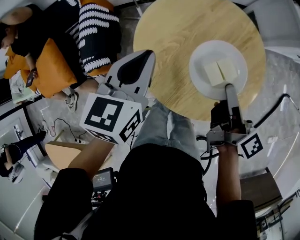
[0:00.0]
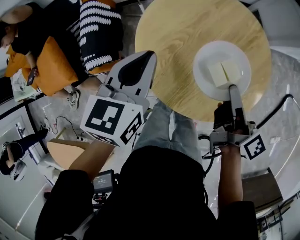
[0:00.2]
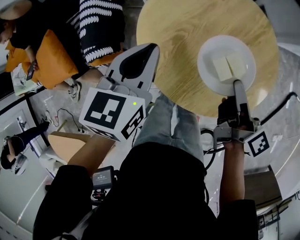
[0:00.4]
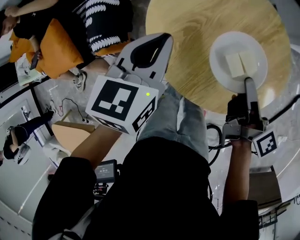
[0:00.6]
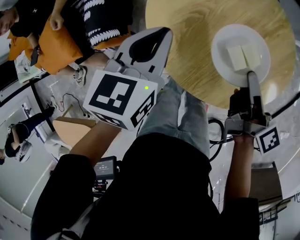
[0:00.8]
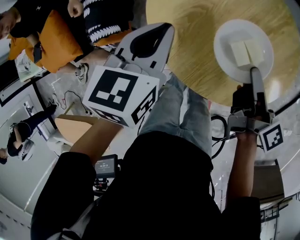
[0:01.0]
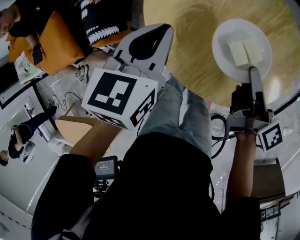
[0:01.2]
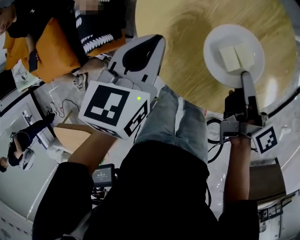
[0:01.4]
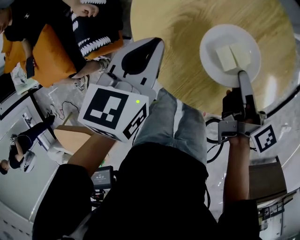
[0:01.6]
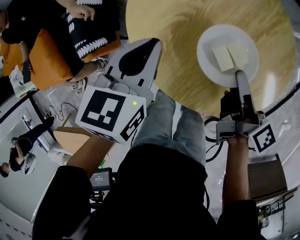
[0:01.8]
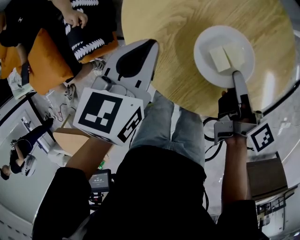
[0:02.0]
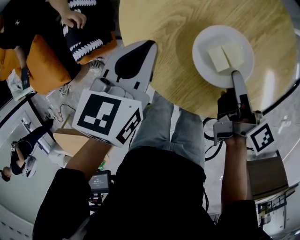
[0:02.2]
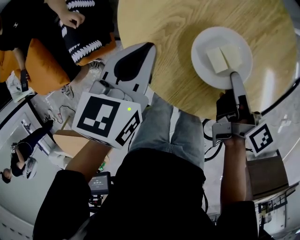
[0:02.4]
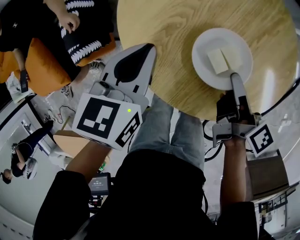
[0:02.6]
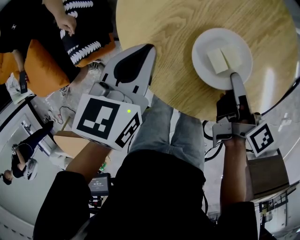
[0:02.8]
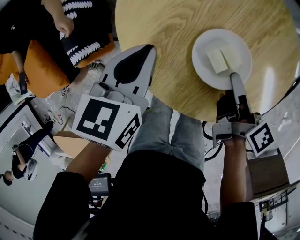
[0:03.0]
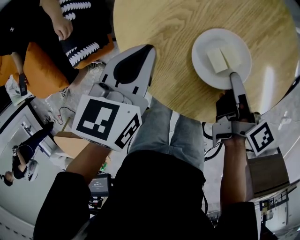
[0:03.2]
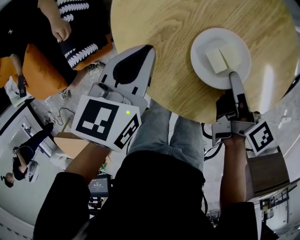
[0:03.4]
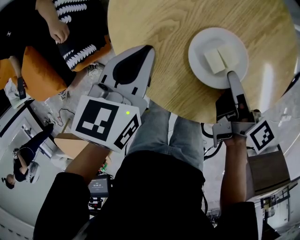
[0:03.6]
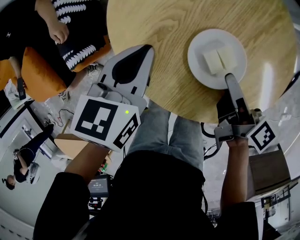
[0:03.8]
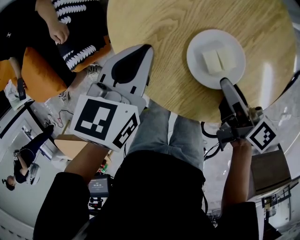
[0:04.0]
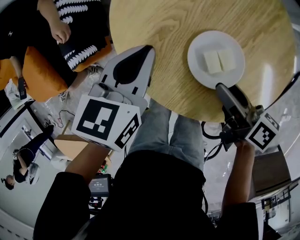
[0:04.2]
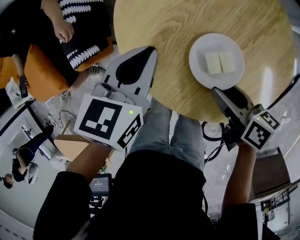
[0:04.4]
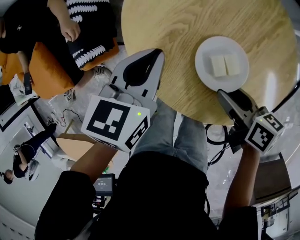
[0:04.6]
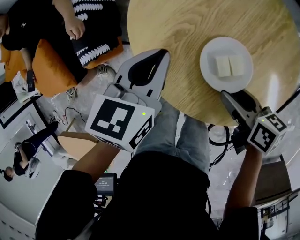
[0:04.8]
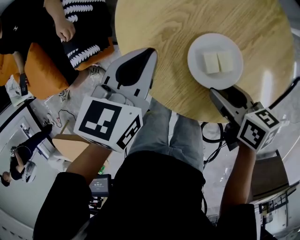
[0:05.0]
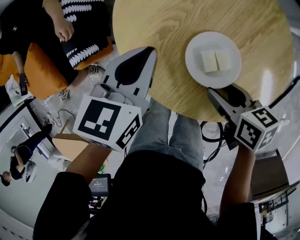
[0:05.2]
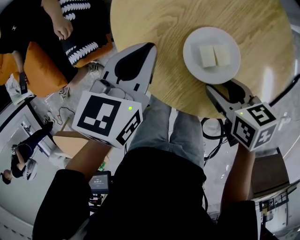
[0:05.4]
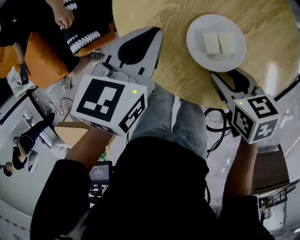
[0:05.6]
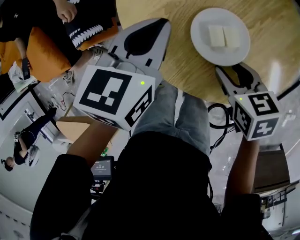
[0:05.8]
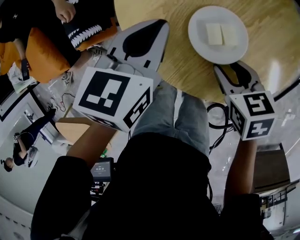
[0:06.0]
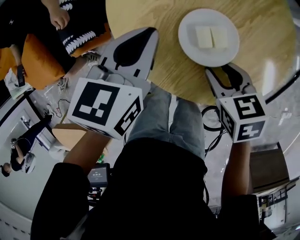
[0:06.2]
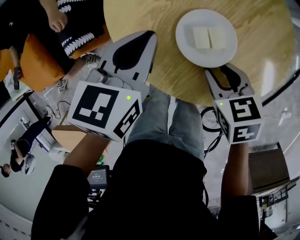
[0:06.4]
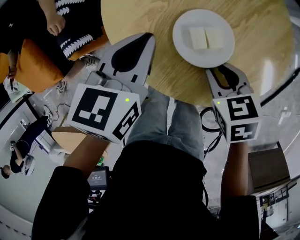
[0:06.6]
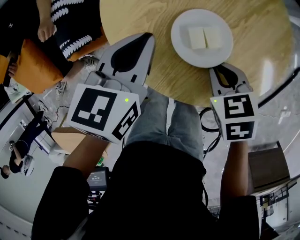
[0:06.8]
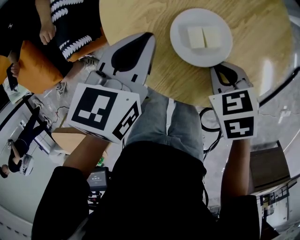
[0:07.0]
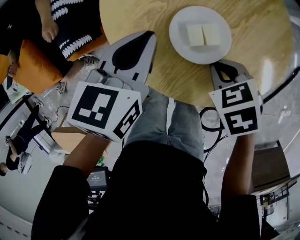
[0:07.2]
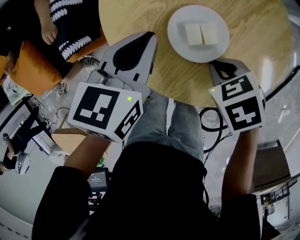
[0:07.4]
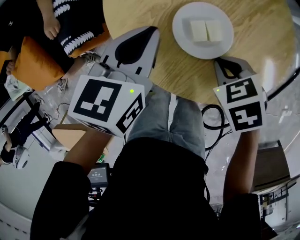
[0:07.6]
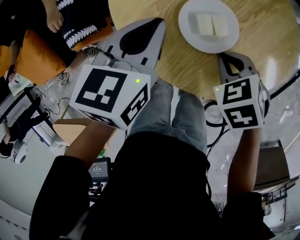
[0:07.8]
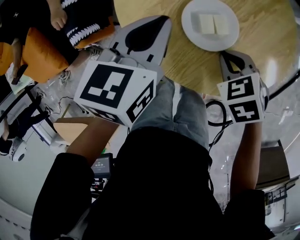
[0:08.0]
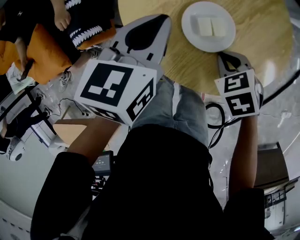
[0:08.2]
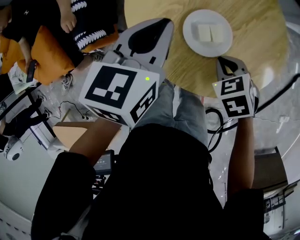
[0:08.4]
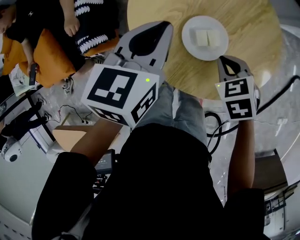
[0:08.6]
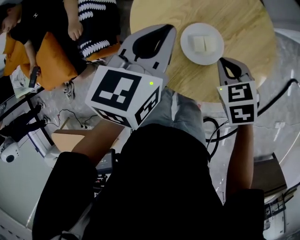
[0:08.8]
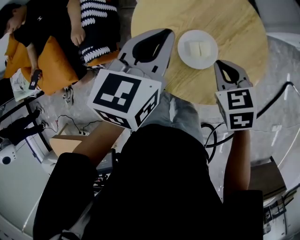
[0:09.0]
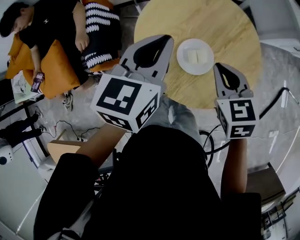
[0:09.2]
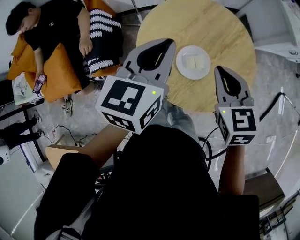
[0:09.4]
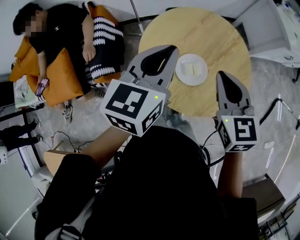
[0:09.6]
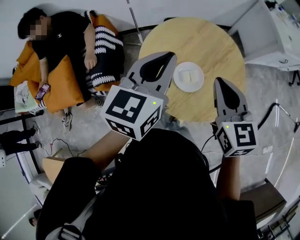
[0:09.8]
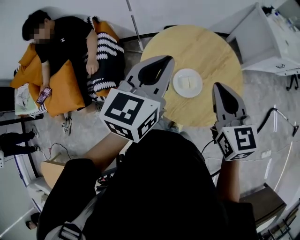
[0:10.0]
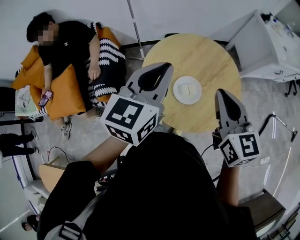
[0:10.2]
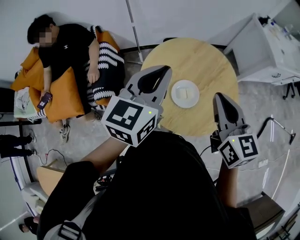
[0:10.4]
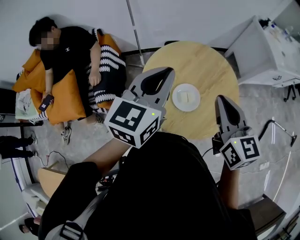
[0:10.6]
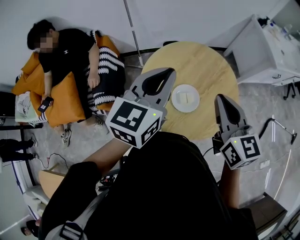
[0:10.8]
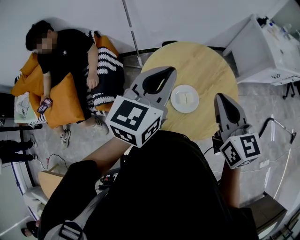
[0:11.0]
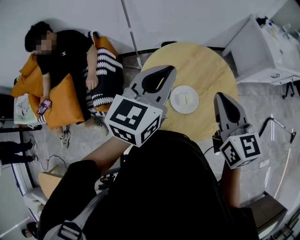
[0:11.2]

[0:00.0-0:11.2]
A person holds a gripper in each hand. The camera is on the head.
0:00.0 to 0:01.6: Both grippers move downward, roughly 10 cm.
0:01.6 to 0:03.2: The grippers stay close to where they were, moving slightly.
0:03.2 to 0:04.8: The right gripper moves roughly 5 cm, turns by approximately 50 degrees, and opens.
0:04.8 to 0:06.4: The right gripper swivels roughly 40 degrees.
0:06.4 to 0:08.0: The right gripper turns by some 20 degrees, and closes up.
0:08.0 to 0:09.6: The two grippers go some 25 cm upward. The right gripper tips its fingers upward by about 40 degrees. The left gripper swivels roughly 20 degrees.
0:09.6 to 0:11.2: Both grippers travel together upward, about 5 cm.

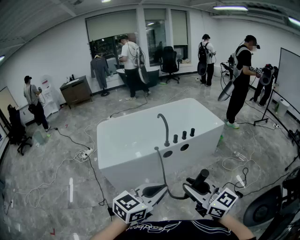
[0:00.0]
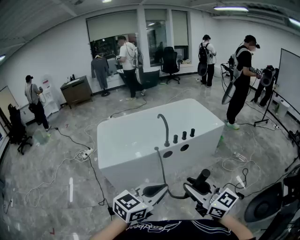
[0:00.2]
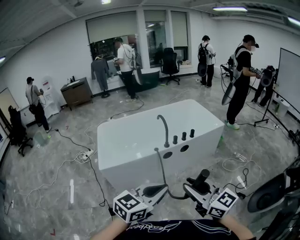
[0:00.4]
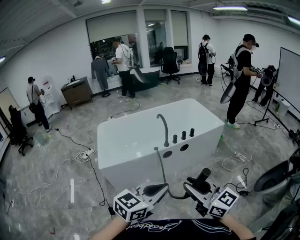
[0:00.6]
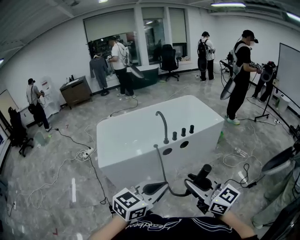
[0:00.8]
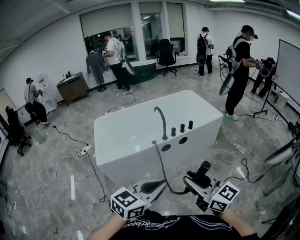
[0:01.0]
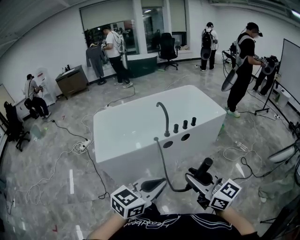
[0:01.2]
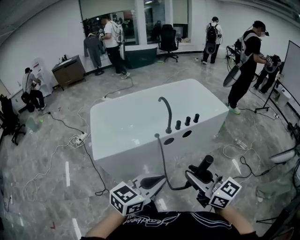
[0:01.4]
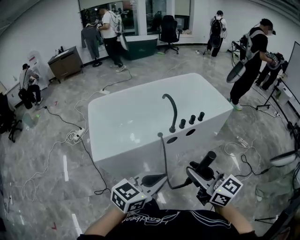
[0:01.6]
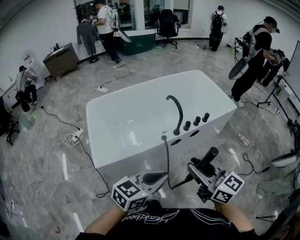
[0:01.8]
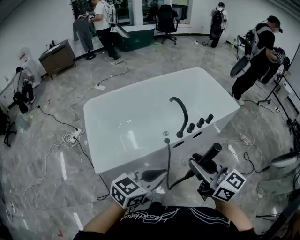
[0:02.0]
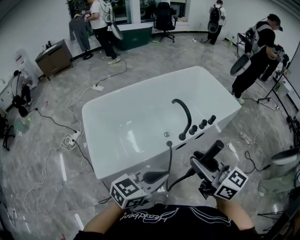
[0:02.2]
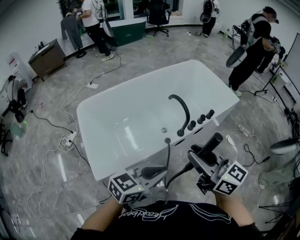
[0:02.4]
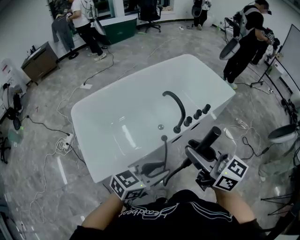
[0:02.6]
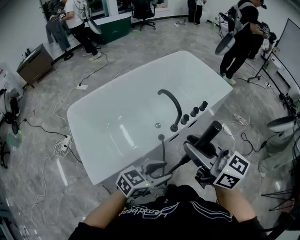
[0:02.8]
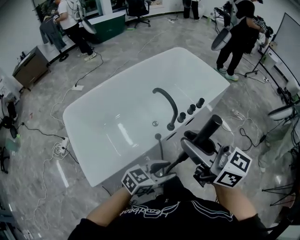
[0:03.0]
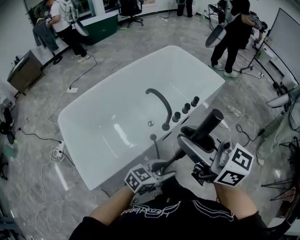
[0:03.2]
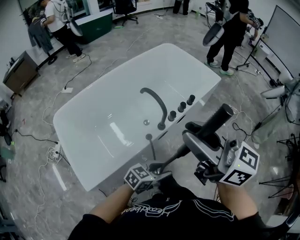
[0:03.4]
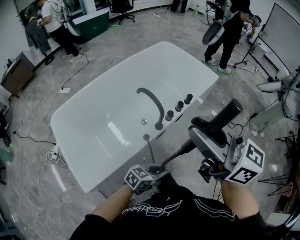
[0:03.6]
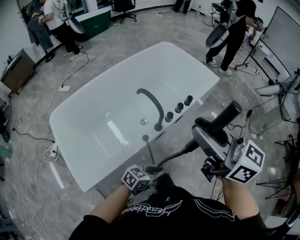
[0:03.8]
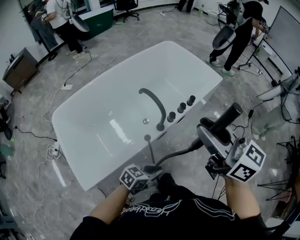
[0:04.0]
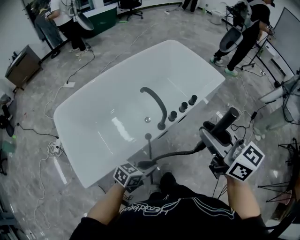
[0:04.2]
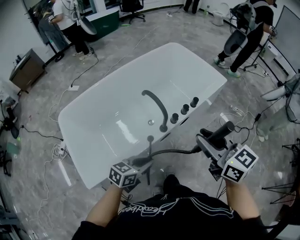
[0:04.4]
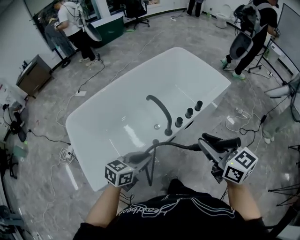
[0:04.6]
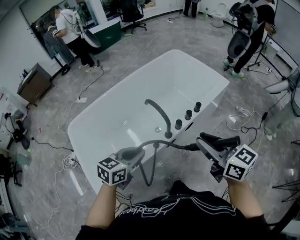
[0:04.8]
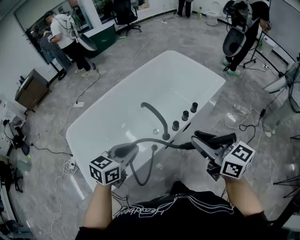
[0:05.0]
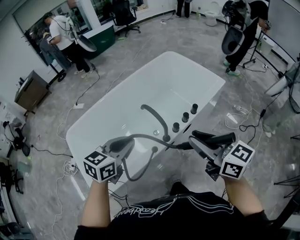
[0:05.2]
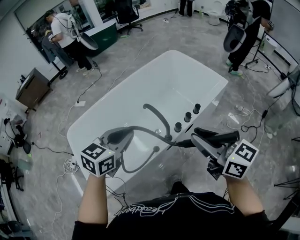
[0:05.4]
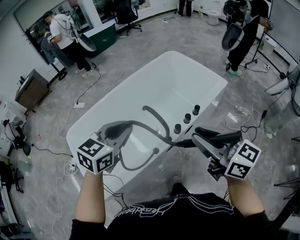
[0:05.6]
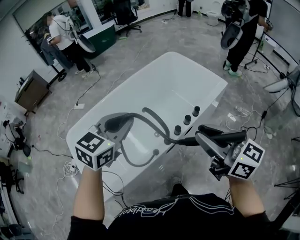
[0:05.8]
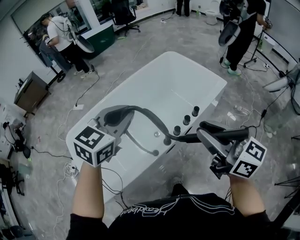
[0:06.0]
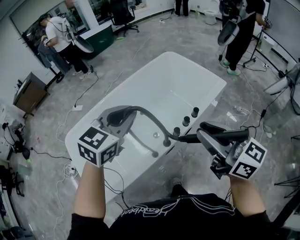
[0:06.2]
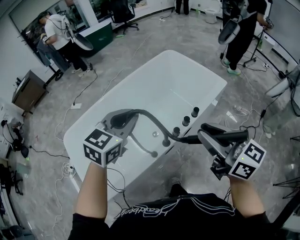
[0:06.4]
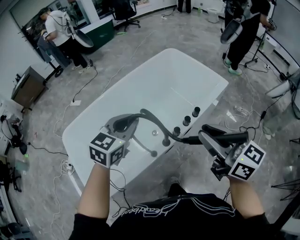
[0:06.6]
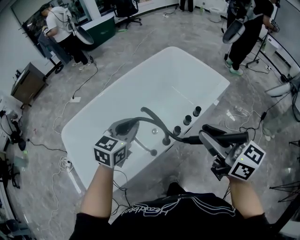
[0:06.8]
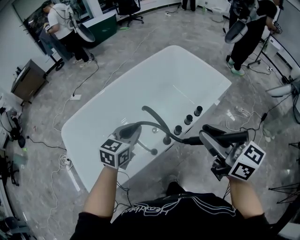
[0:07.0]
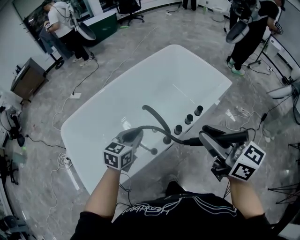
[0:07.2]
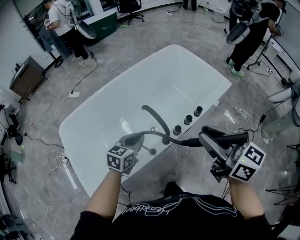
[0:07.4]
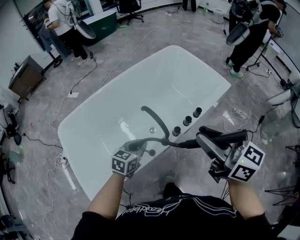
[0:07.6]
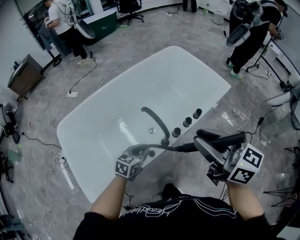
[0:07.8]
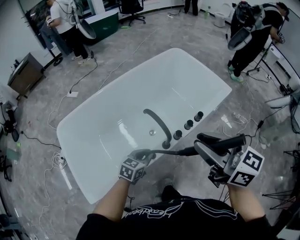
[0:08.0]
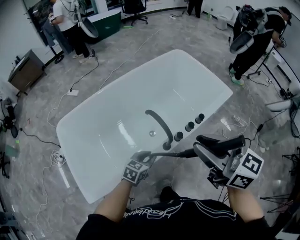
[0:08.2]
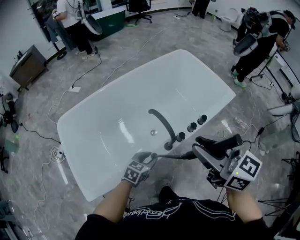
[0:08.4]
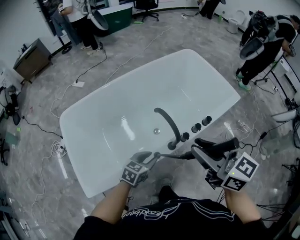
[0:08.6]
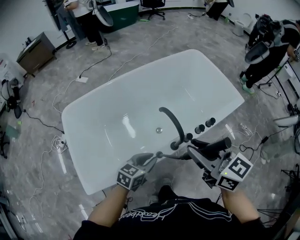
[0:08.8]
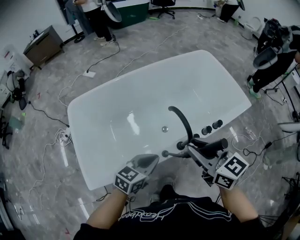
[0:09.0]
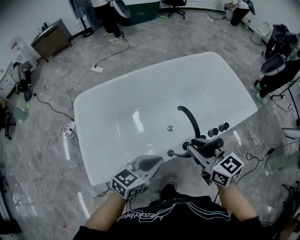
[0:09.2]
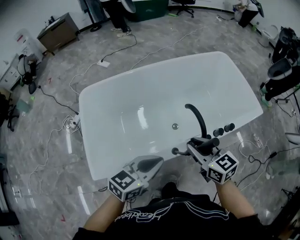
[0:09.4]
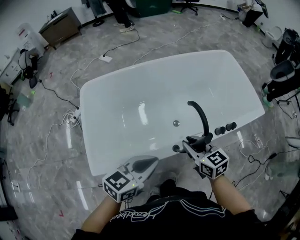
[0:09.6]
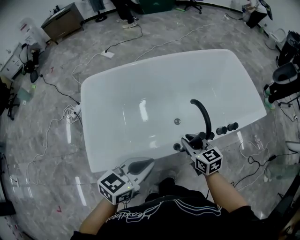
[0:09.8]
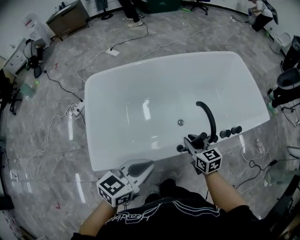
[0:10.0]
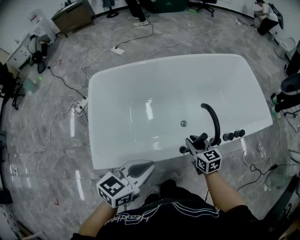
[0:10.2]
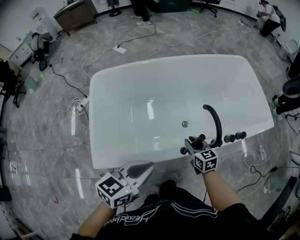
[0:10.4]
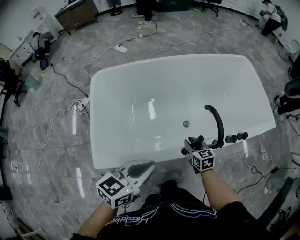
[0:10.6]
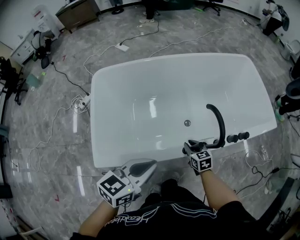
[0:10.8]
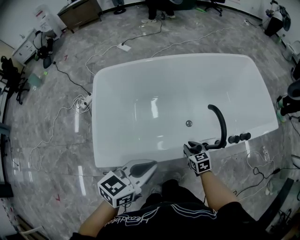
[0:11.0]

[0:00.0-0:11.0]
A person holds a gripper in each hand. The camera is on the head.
0:00.0 to 0:01.6: The right gripper moves forward and to the left, roughly 20 cm, while the left gripper heads forward, to the left and downward, covering about 15 cm.
0:01.6 to 0:03.2: The left gripper shifts approximately 25 cm forward and downward, rotates some 30 degrees, and opens its fingers. The right gripper moves forward and to the left, some 25 cm.
0:03.2 to 0:04.8: The right gripper goes some 15 cm to the right, downward and forward; the left gripper shifts some 20 cm to the left, forward and upward, swivels approximately 30 degrees, and closes up.
0:04.8 to 0:06.2: The right gripper travels upward by about 10 cm. Meanwhile the left gripper goes approximately 20 cm upward and forward, and rotates about 30 degrees.
0:06.2 to 0:07.8: The right gripper changes place by about 5 cm, while the left gripper goes about 30 cm downward, and rotates about 30 degrees.
0:07.8 to 0:09.4: The left gripper shifts some 15 cm upward, backward and to the left, and opens and closes again; the right gripper moves downward and to the left, about 20 cm, and changes its angle by approximately 30 degrees.
0:09.4 to 0:11.0: The right gripper shifts roughly 25 cm downward, and changes its angle by about 20 degrees. Meanwhile the left gripper goes some 5 cm to the left.

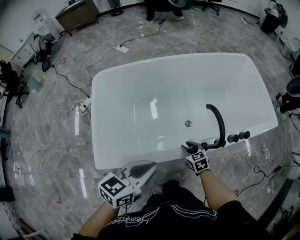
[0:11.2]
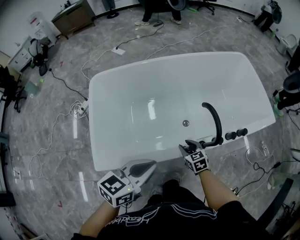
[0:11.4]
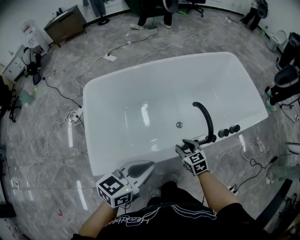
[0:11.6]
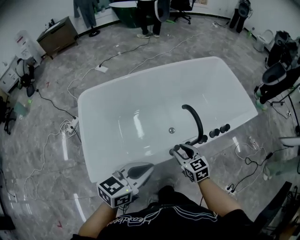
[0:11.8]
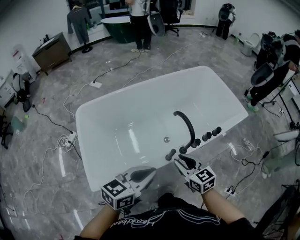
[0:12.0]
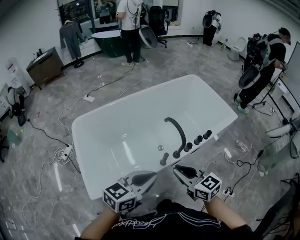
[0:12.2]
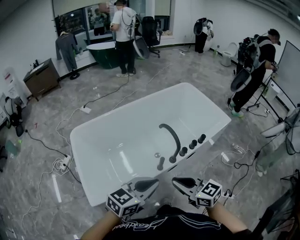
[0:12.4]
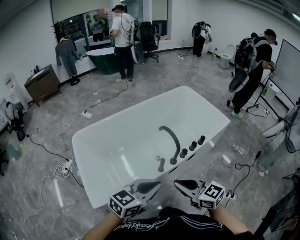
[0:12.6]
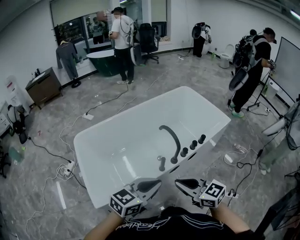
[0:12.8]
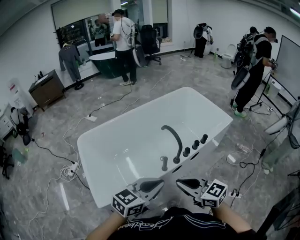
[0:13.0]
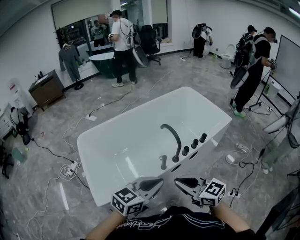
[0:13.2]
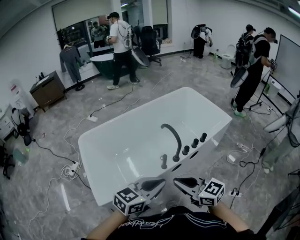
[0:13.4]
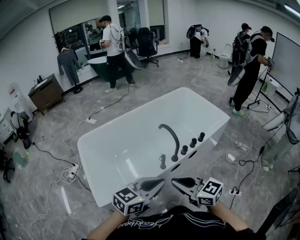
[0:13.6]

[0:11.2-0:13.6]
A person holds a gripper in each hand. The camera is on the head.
0:11.2 to 0:12.4: The right gripper heads upward and backward, covering approximately 35 cm, and points its fingers some 30 degrees further upward. Meanwhile the left gripper goes some 15 cm to the right, upward and backward, and rotates approximately 30 degrees.
0:12.4 to 0:13.6: The right gripper shifts approximately 5 cm backward. Meanwhile the left gripper ends up about 5 cm from where it was.
